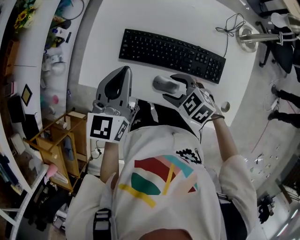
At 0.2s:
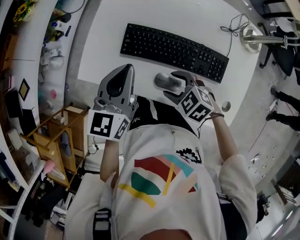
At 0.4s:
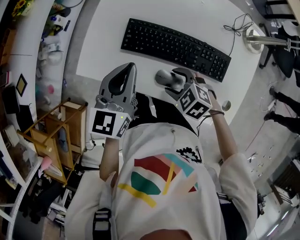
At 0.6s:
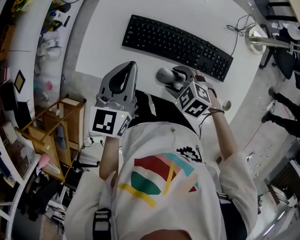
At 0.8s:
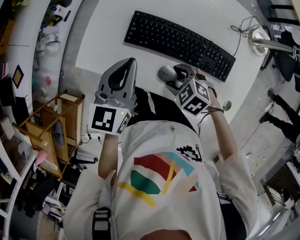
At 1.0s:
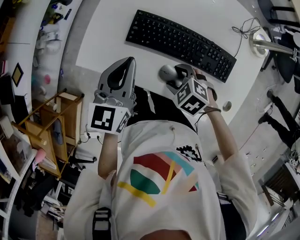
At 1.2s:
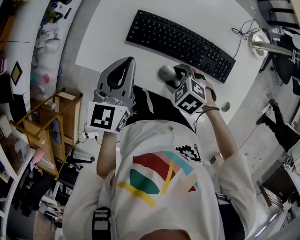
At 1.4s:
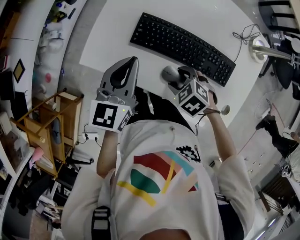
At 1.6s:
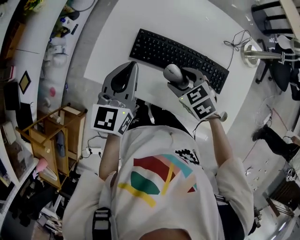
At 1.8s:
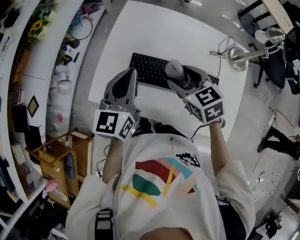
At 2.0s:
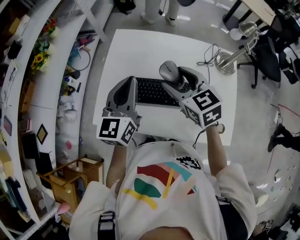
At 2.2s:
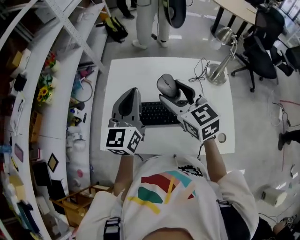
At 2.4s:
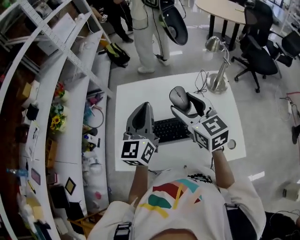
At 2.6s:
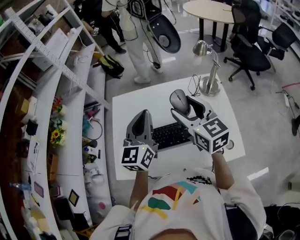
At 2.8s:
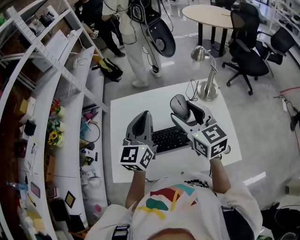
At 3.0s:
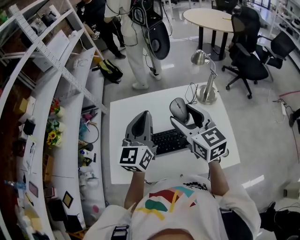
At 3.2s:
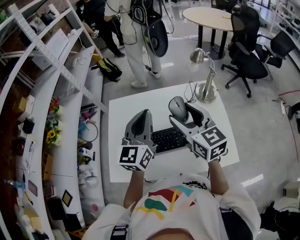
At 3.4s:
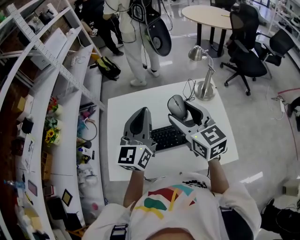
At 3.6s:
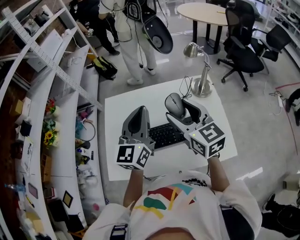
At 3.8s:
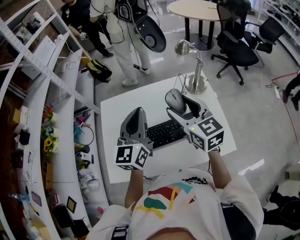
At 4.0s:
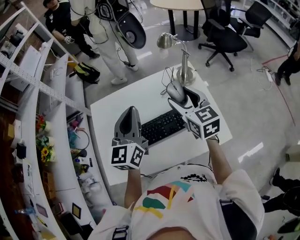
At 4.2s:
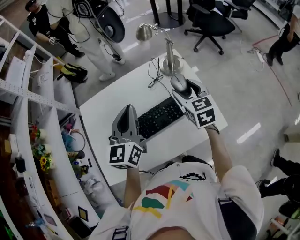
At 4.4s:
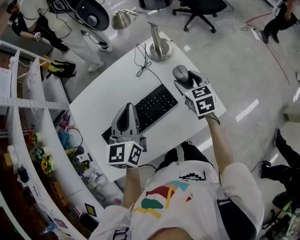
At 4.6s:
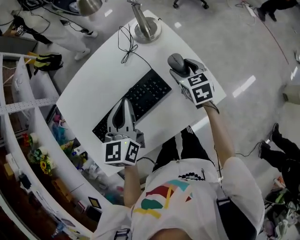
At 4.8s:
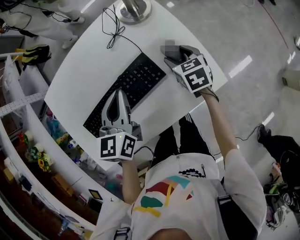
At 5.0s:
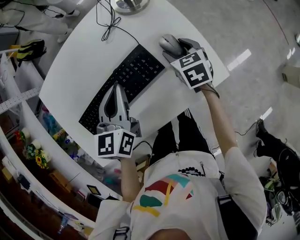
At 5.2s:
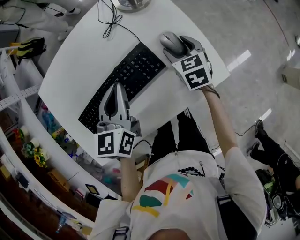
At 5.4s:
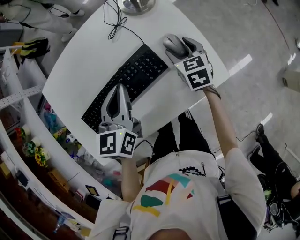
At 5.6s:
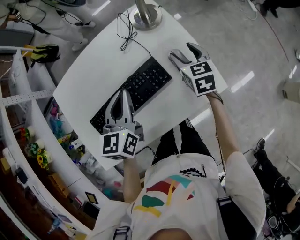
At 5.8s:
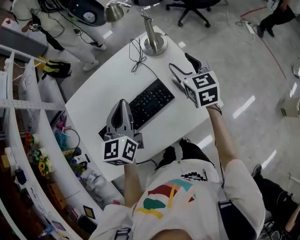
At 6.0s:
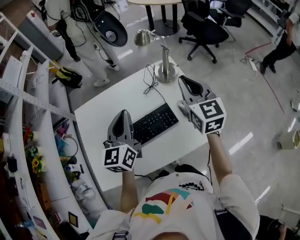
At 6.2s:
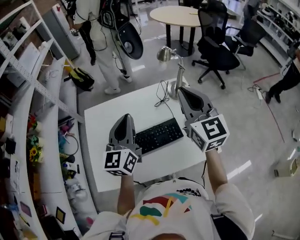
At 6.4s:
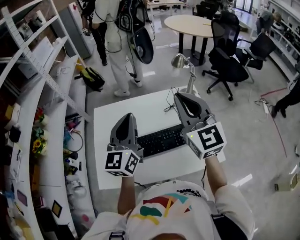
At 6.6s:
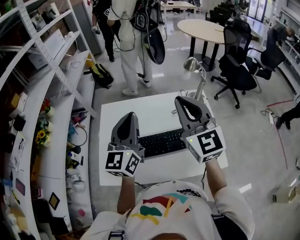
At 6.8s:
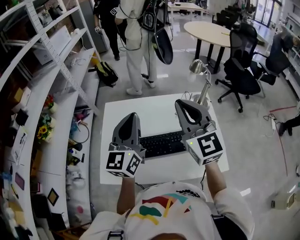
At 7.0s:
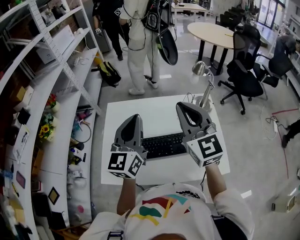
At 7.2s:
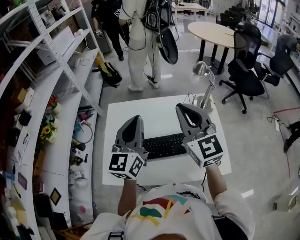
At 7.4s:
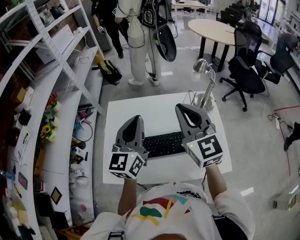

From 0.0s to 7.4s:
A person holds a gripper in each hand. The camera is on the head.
From 0.0s to 1.4s: The left gripper ends up approximately 5 cm from where it was. The right gripper heads downward, covering roughly 5 cm.
From 1.4s to 3.0s: The right gripper goes roughly 35 cm upward, and tips its fingers upward by about 60 degrees; the left gripper travels upward by roughly 20 cm, and turns by roughly 30 degrees.
From 3.0s to 4.4s: The left gripper is displaced to the right and downward by about 15 cm, and swivels some 20 degrees, while the right gripper goes about 30 cm to the right and downward, and turns by roughly 40 degrees.
From 4.4s to 6.0s: The right gripper is displaced upward by about 20 cm, rotates roughly 30 degrees, and closes; the left gripper travels downward and back again, about 15 cm each way.
From 6.0s to 7.4s: The left gripper moves to the left and upward, about 15 cm; the right gripper travels to the left and upward by some 20 cm, and swivels roughly 30 degrees.

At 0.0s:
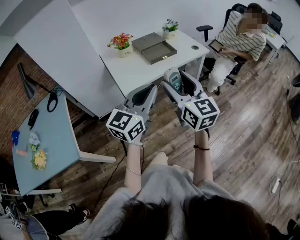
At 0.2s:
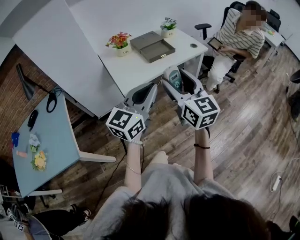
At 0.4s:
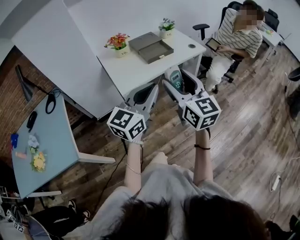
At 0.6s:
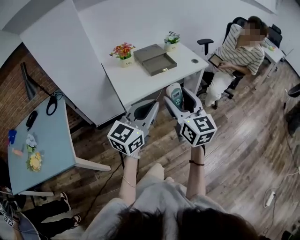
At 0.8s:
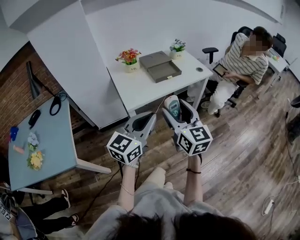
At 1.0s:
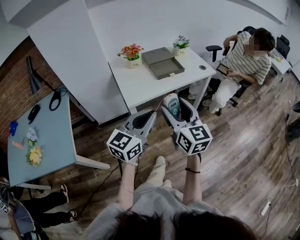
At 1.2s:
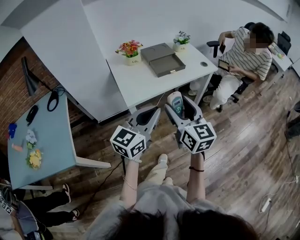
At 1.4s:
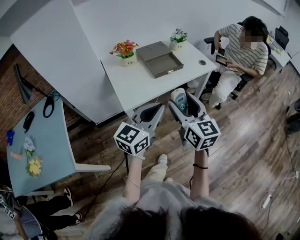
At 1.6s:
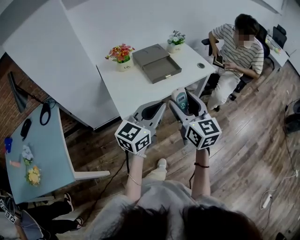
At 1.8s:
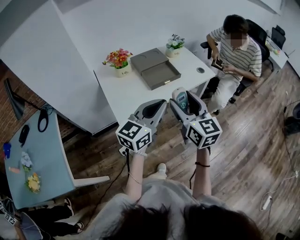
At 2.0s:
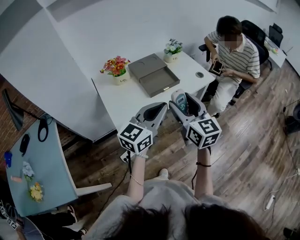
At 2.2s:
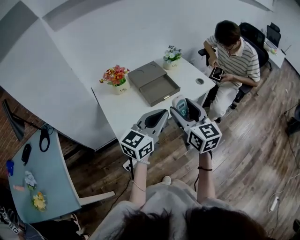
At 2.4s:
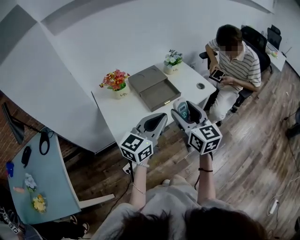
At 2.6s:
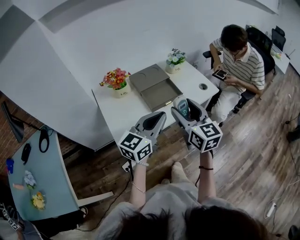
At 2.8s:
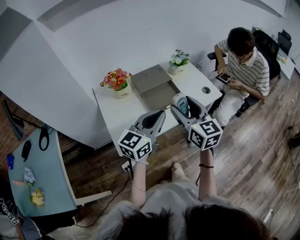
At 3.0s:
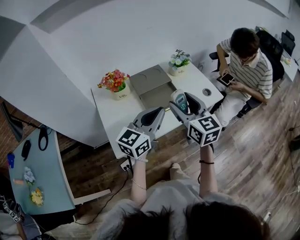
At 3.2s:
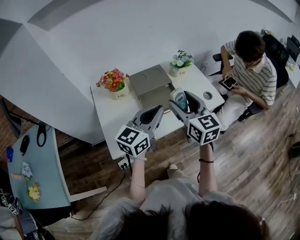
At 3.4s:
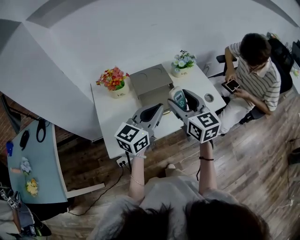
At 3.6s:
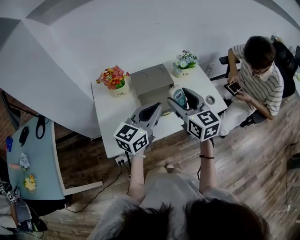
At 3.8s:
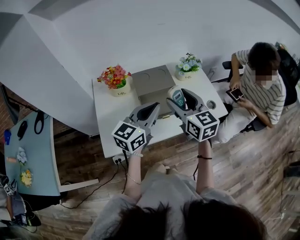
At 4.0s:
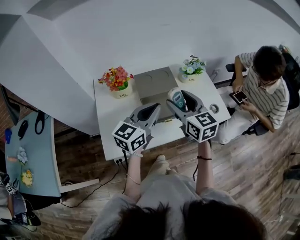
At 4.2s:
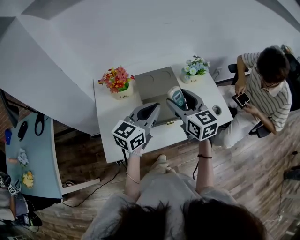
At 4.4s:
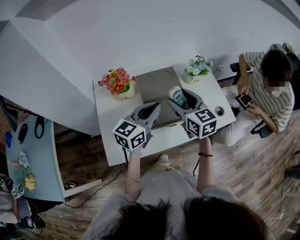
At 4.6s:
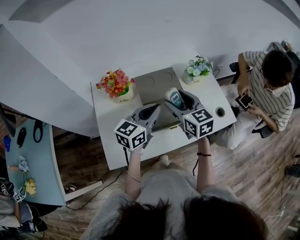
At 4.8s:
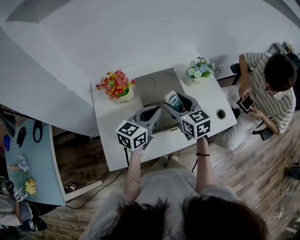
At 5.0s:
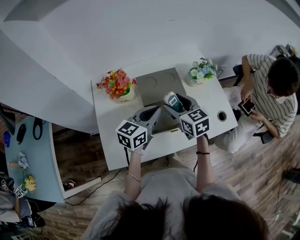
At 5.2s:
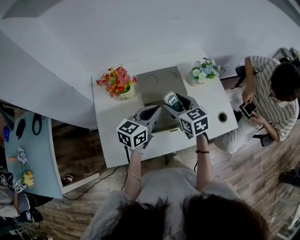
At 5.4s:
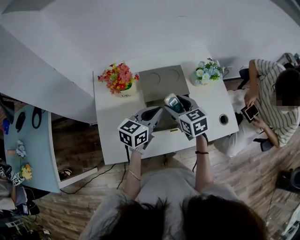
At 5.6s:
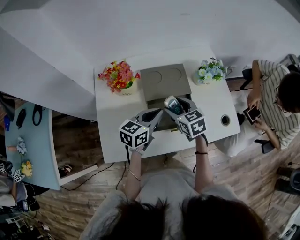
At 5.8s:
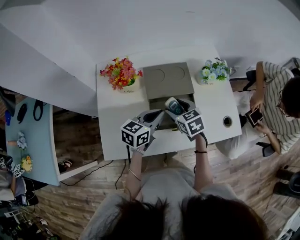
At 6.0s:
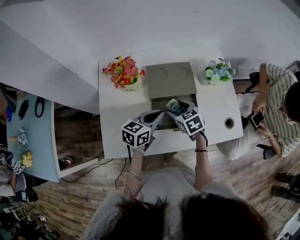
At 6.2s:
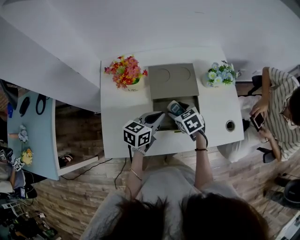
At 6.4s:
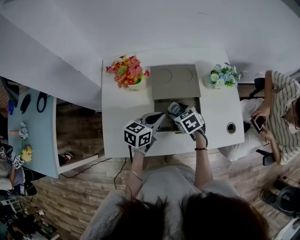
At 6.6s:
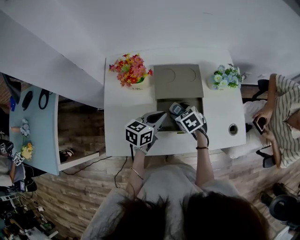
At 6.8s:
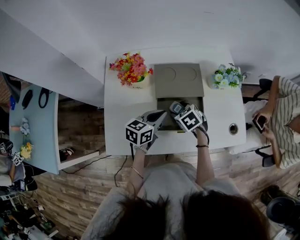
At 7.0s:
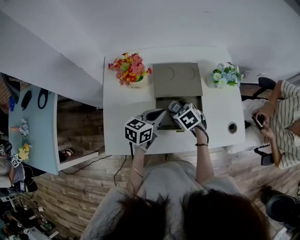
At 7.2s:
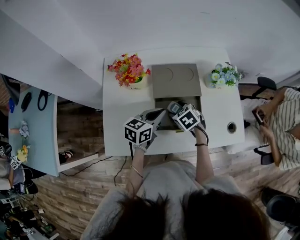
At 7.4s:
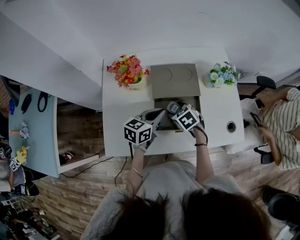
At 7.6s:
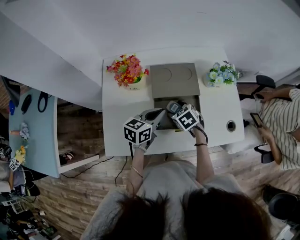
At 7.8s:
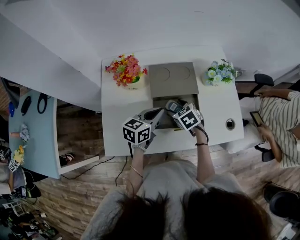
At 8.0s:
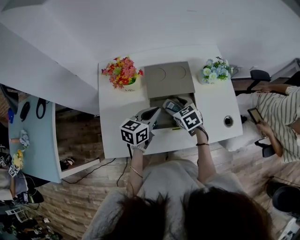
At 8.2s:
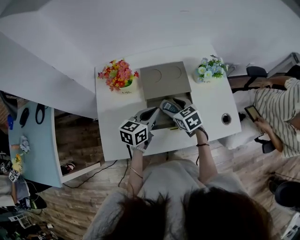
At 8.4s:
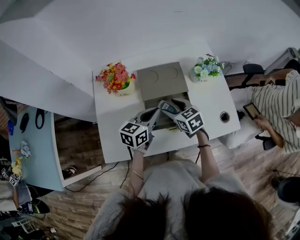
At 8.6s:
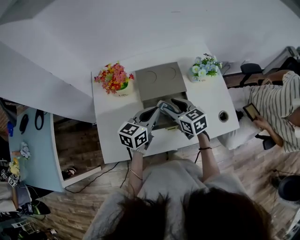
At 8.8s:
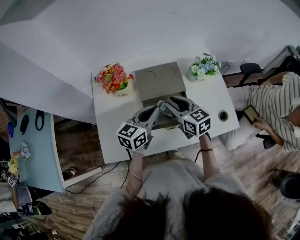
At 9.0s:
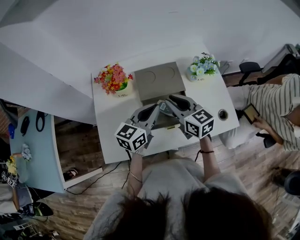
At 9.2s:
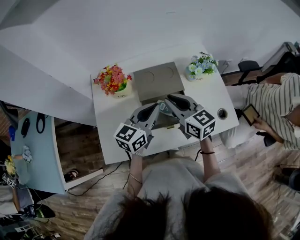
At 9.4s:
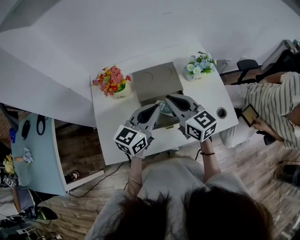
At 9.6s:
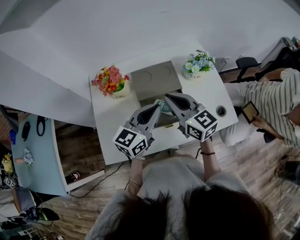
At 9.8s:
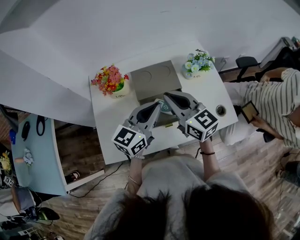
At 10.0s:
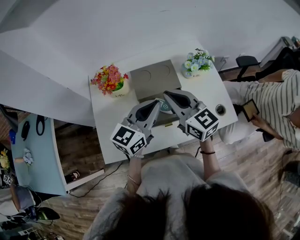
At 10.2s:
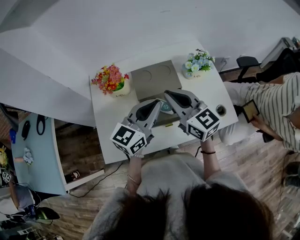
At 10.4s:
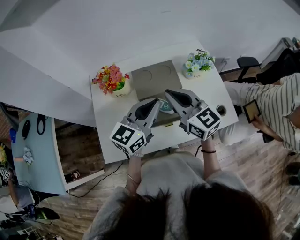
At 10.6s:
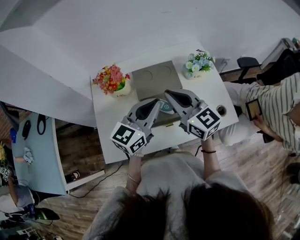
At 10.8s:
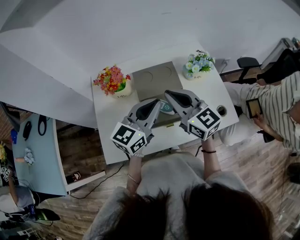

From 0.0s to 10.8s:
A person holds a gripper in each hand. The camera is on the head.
From 0.0s to 1.6s: Both grippers move forward, roughly 15 cm.
From 1.6s to 3.0s: The grippers both shift forward by approximately 25 cm.
From 3.0s to 4.6s: The two grippers go about 20 cm forward and downward.
From 4.6s to 6.2s: The right gripper moves downward, approximately 20 cm, and tips its fingers downward by about 30 degrees; the left gripper moves downward, approximately 10 cm, and rotates about 20 degrees.
From 6.2s to 7.8s: The grippers stay close to where they were, moving slightly.
From 7.8s to 9.2s: The left gripper is displaced upward by approximately 10 cm; the right gripper shifts some 20 cm upward, tilts its fingers approximately 40 degrees upward, and closes up.
From 9.2s to 10.8s: The two grippers go approximately 5 cm upward.

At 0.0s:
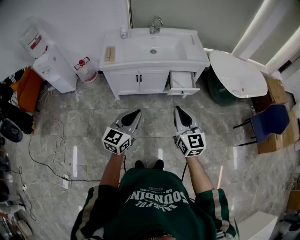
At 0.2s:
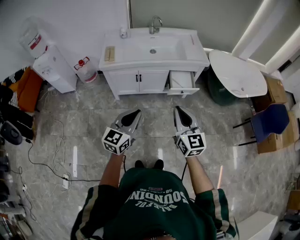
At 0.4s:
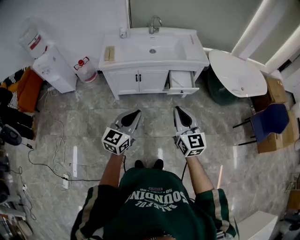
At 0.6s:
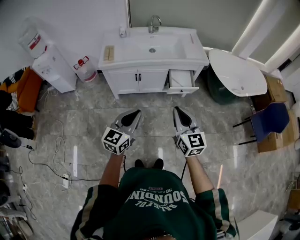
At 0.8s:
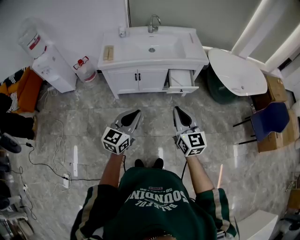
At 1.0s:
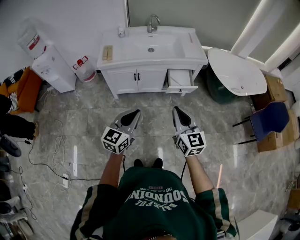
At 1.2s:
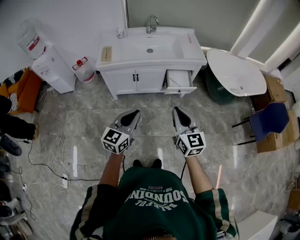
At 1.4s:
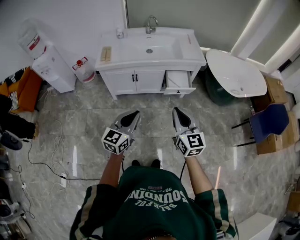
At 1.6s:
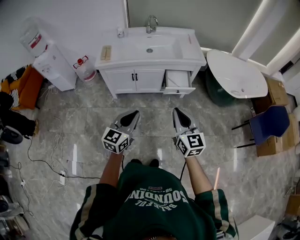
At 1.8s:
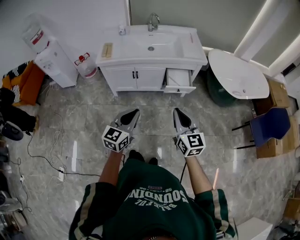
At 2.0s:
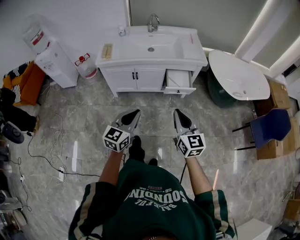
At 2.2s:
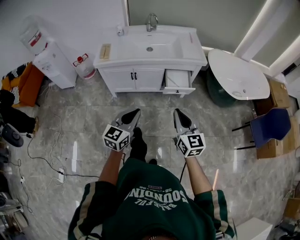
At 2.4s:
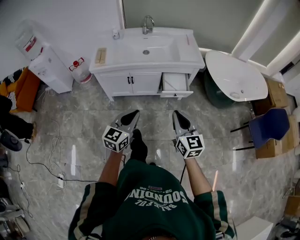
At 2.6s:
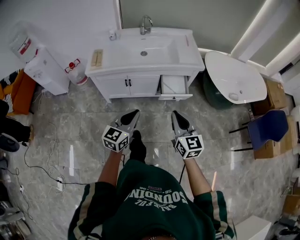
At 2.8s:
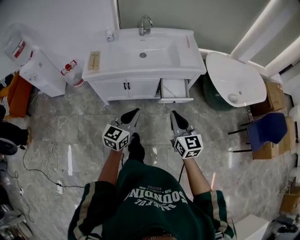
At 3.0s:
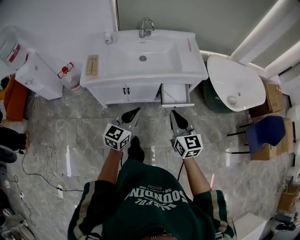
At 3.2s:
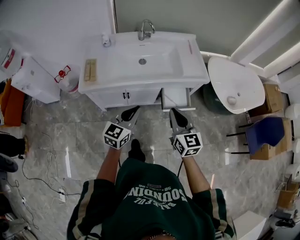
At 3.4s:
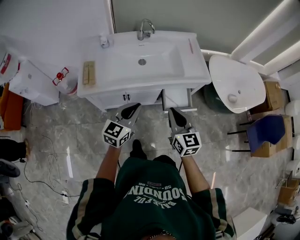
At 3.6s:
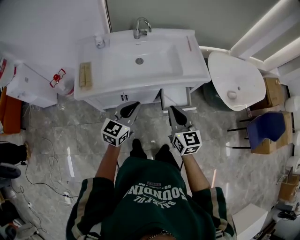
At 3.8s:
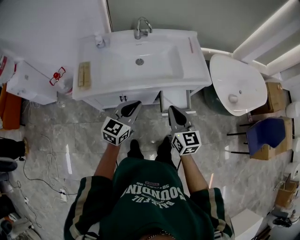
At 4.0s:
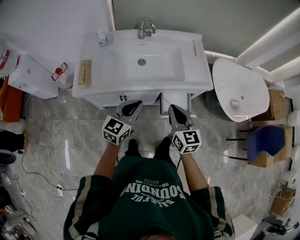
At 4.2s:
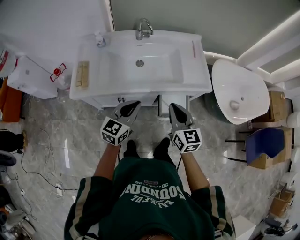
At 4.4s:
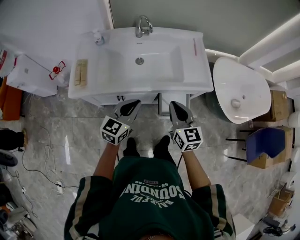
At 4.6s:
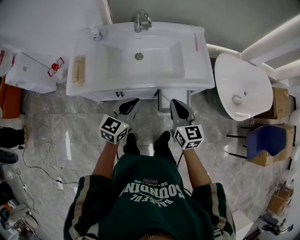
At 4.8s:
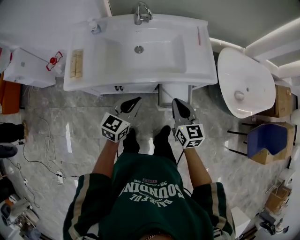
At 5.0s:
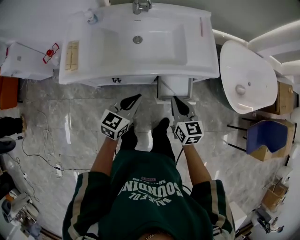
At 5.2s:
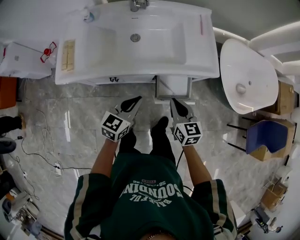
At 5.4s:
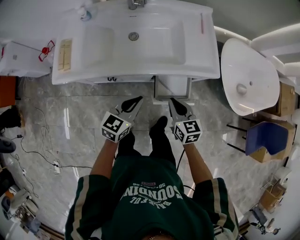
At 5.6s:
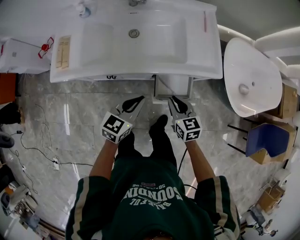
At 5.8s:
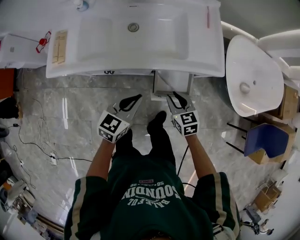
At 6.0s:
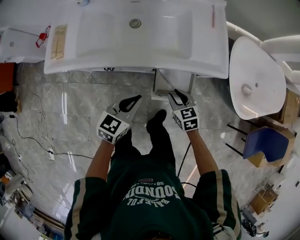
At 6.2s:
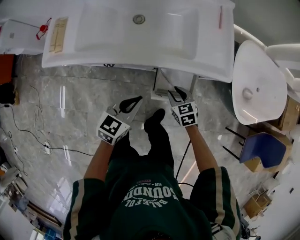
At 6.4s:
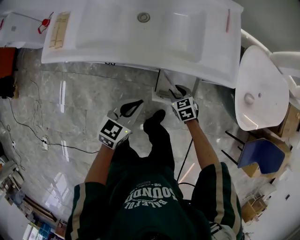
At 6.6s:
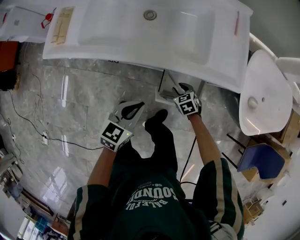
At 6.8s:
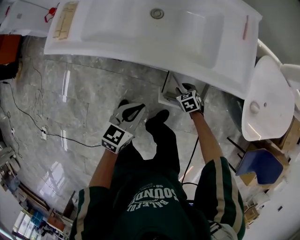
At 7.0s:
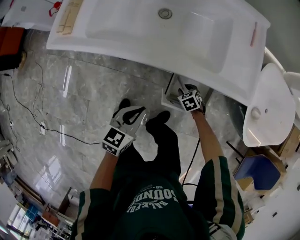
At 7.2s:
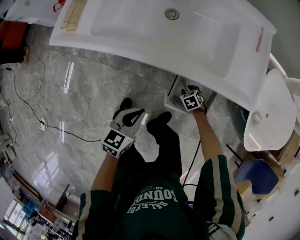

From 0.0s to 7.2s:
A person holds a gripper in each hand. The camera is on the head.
From 0.0s to 1.4s: There are only small adjustments of the grippers.
From 1.4s to 2.8s: Both grippers move forward, about 15 cm.
From 2.8s to 4.4s: The two grippers go roughly 25 cm forward.
From 4.4s to 5.8s: The left gripper goes roughly 15 cm downward and to the right. Meanwhile the right gripper moves downward, roughly 25 cm, rotates about 30 degrees, and opens.
From 5.8s to 7.2s: The right gripper travels downward by about 30 cm, and points its fingers some 40 degrees further downward; the left gripper travels downward by about 15 cm, and turns by roughly 20 degrees.
